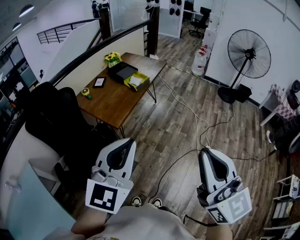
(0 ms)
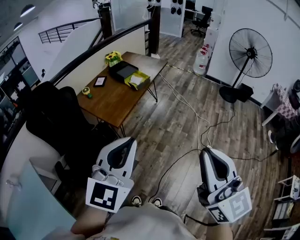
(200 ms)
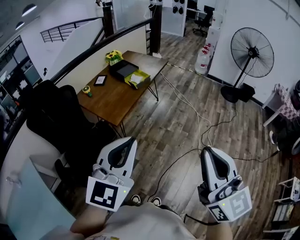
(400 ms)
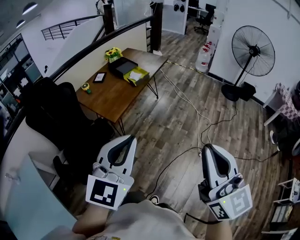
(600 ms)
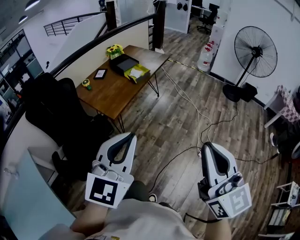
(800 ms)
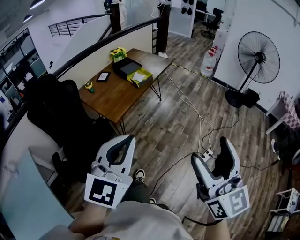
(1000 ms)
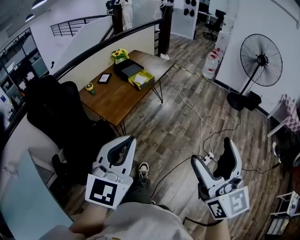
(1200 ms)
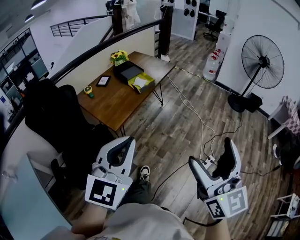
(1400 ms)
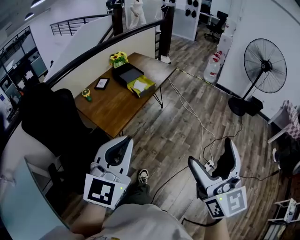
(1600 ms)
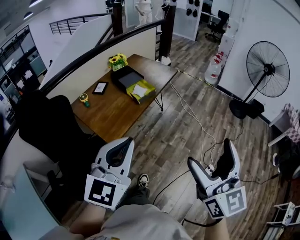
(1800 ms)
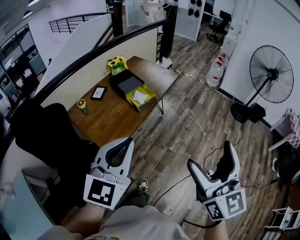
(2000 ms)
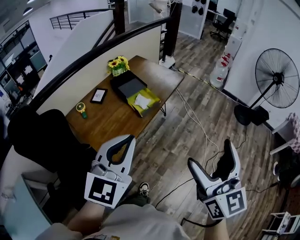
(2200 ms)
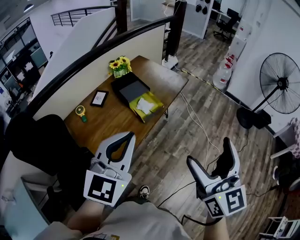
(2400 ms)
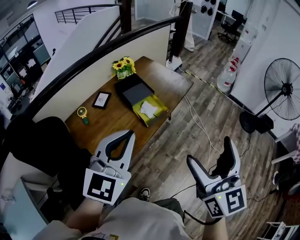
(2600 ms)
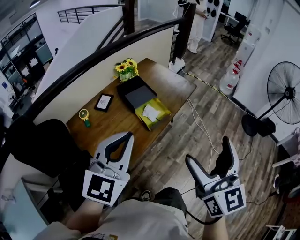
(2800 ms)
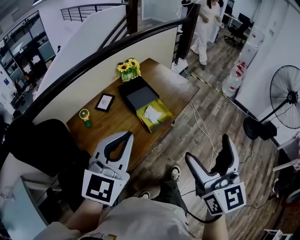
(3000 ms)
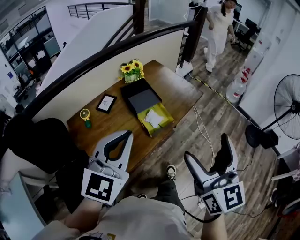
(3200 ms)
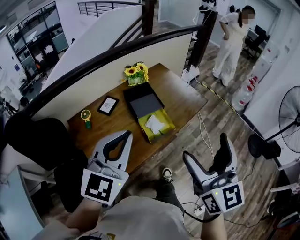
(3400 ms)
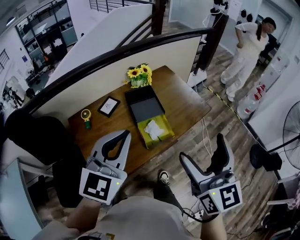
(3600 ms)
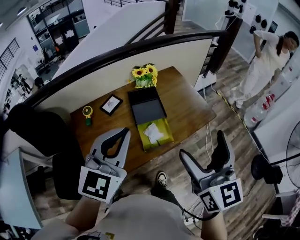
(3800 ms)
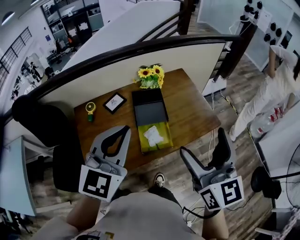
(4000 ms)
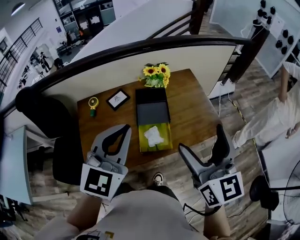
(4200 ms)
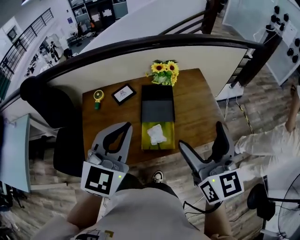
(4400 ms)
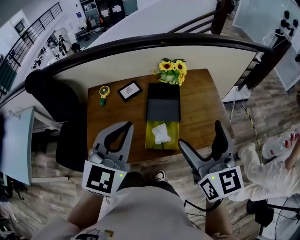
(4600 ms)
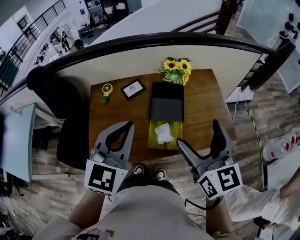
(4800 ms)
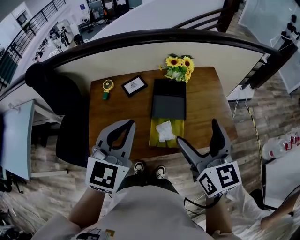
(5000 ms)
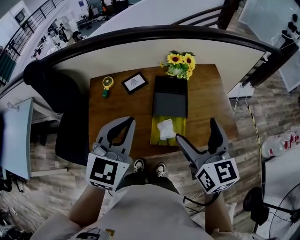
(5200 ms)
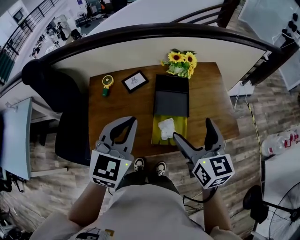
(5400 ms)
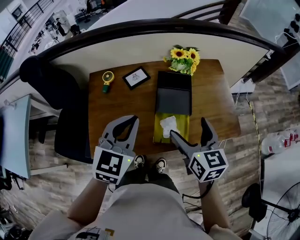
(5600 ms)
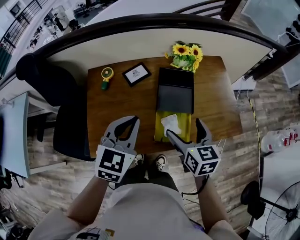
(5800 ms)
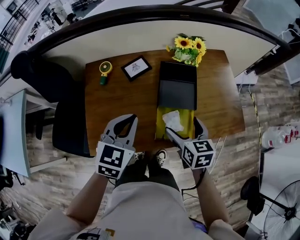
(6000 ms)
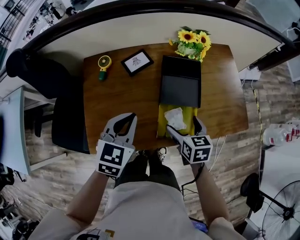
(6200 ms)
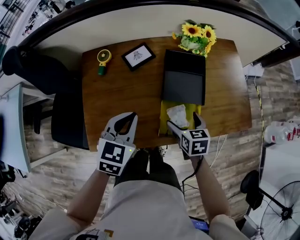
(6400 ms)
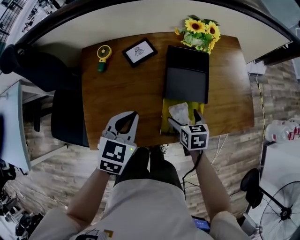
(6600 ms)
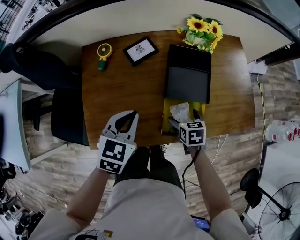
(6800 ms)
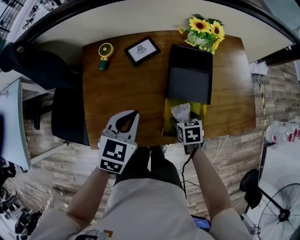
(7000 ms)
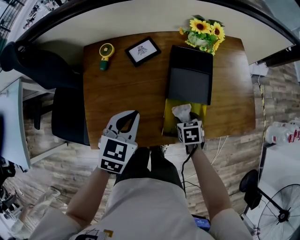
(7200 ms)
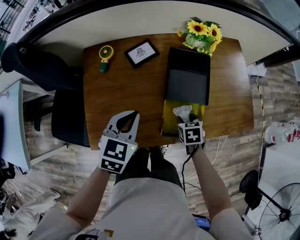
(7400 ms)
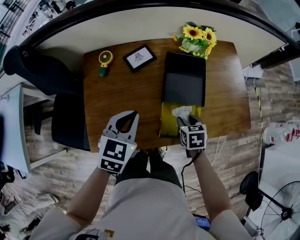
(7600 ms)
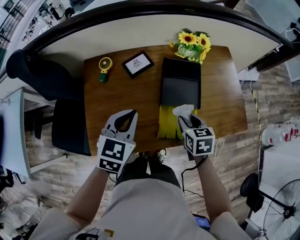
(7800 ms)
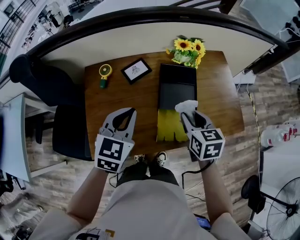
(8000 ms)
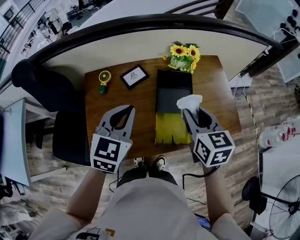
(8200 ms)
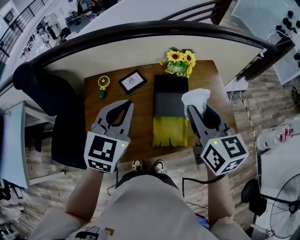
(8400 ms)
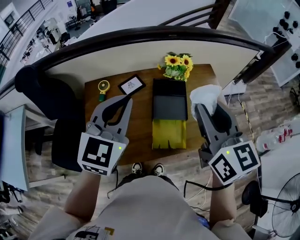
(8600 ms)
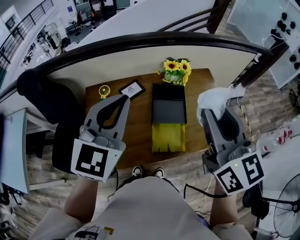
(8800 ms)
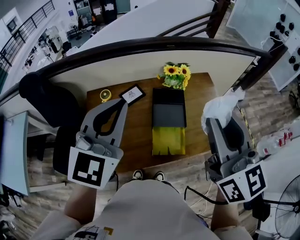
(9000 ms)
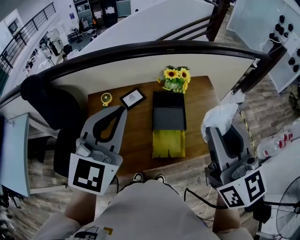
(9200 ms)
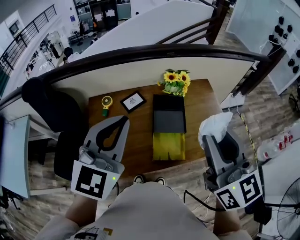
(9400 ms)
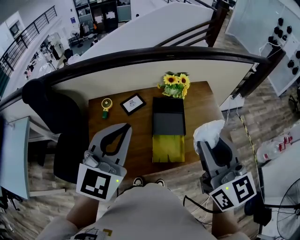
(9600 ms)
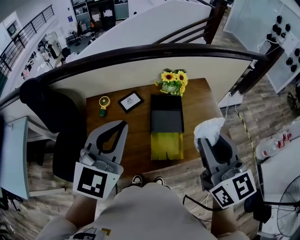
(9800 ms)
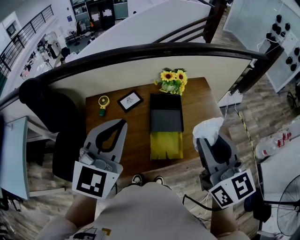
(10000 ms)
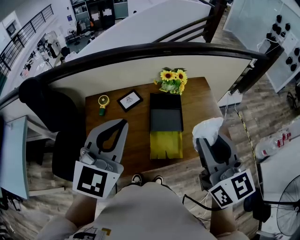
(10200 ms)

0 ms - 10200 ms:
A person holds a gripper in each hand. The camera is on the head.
0 ms - 1400 ms: The grippers both shift forward and to the right by about 10 cm. The right gripper opens.
1400 ms - 3000 ms: The pair of grippers is taken forward, approximately 50 cm.
3000 ms - 4400 ms: The left gripper ends up some 20 cm from where it was, and turns by approximately 40 degrees; the right gripper shifts by roughly 35 cm, and swivels roughly 40 degrees.
4400 ms - 5800 ms: The left gripper is displaced downward, to the left and forward by about 15 cm. Meanwhile the right gripper moves downward and to the left, approximately 25 cm, and changes its angle by approximately 30 degrees.
5800 ms - 7200 ms: The left gripper travels downward by about 15 cm; the right gripper travels downward by roughly 25 cm, tilts its fingers about 40 degrees downward, and closes its fingers.
7200 ms - 8800 ms: The left gripper moves upward, about 30 cm, and tips its fingers upward by approximately 30 degrees. The right gripper shifts about 50 cm upward, and angles its fingers upward, by about 60 degrees.
8800 ms - 10200 ms: The right gripper ends up roughly 5 cm from where it was.

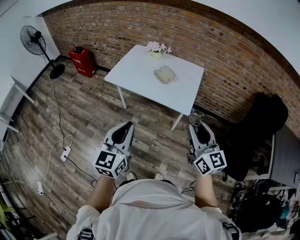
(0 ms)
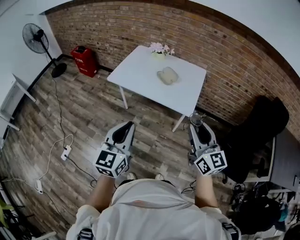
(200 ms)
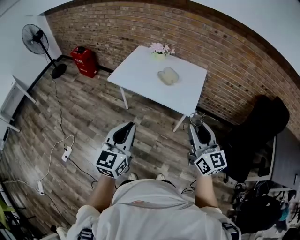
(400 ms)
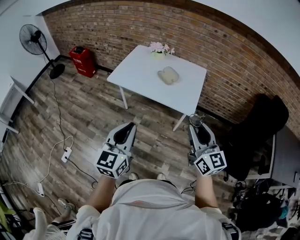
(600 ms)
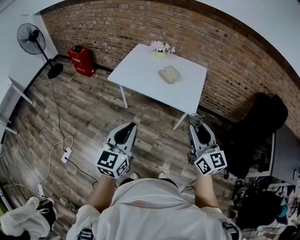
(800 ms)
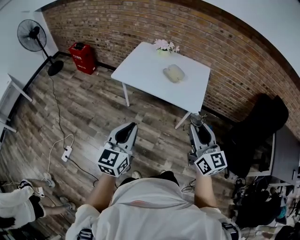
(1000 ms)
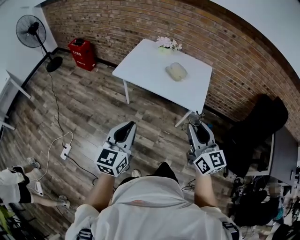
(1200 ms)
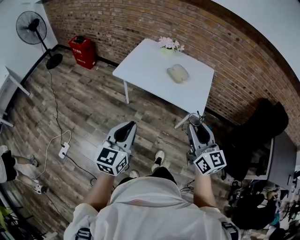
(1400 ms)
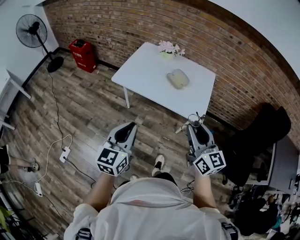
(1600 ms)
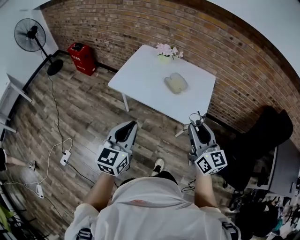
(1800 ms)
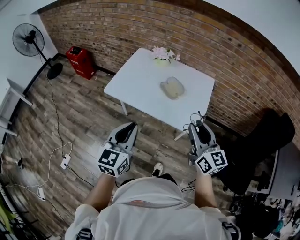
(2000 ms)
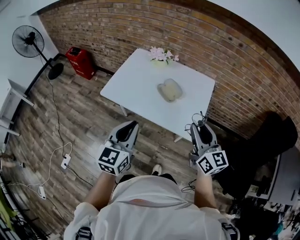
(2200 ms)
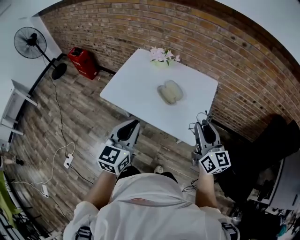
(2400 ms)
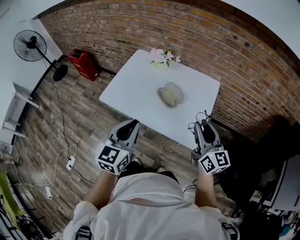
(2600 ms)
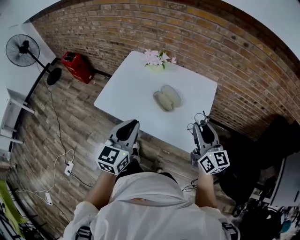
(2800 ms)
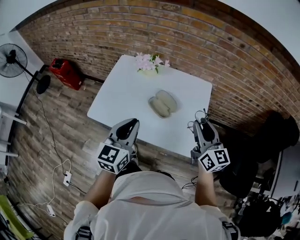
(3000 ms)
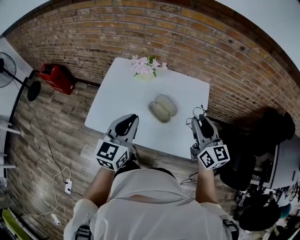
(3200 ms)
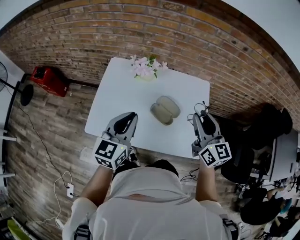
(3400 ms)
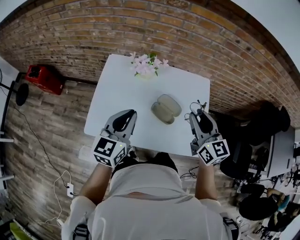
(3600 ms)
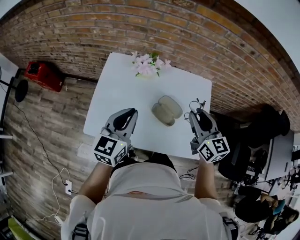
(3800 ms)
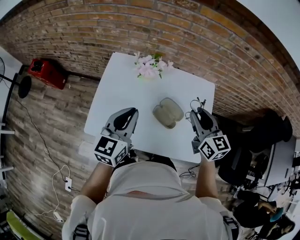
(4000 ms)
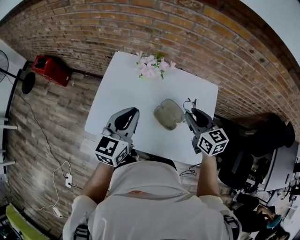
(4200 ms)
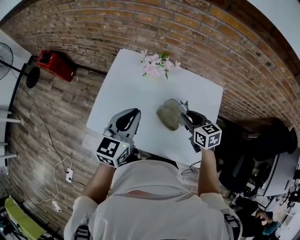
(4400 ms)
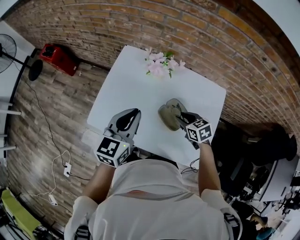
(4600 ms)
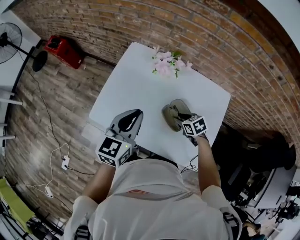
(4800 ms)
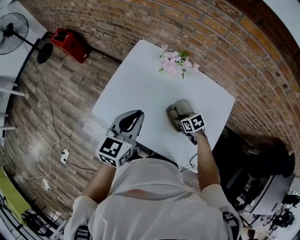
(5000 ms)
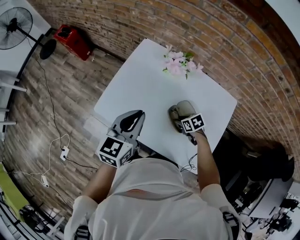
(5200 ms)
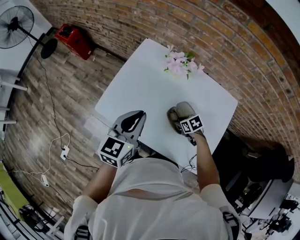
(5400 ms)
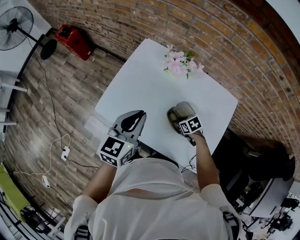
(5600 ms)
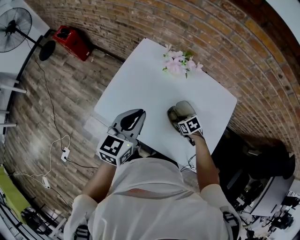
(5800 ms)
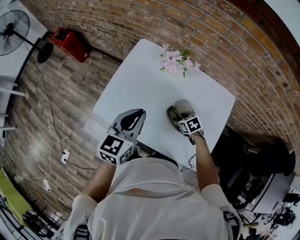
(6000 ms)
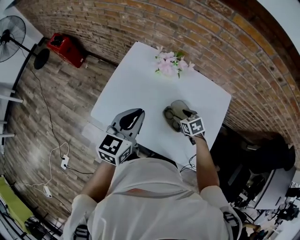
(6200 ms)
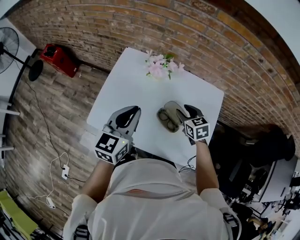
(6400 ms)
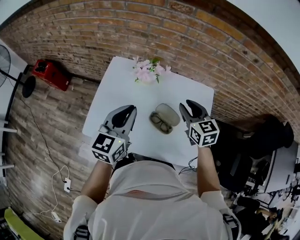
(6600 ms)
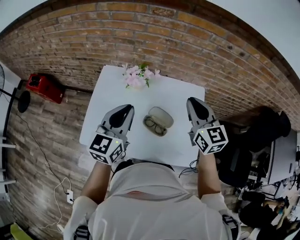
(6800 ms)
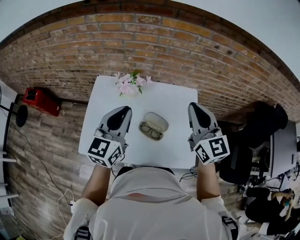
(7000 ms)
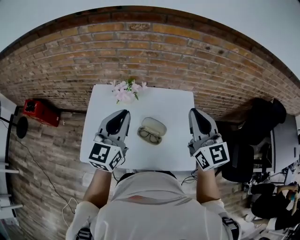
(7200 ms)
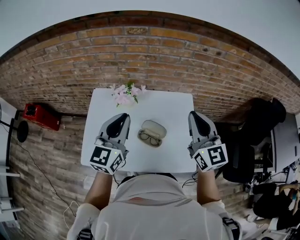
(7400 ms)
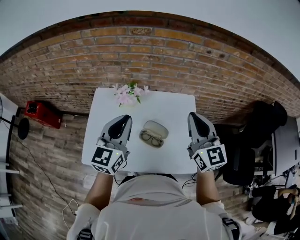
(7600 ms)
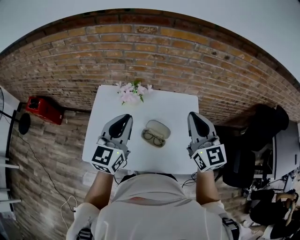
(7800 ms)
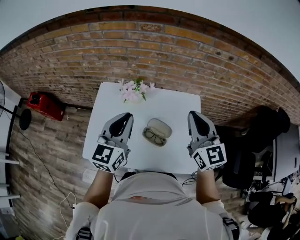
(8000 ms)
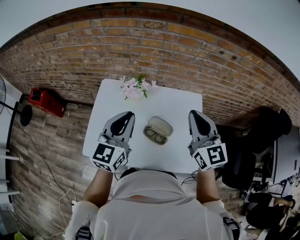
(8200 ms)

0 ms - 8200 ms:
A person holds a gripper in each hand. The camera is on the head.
0 ms - 1600 ms: The grippers both shift to the left and forward by roughly 15 cm.
1600 ms - 3200 ms: The two grippers go about 40 cm forward.
3200 ms - 5000 ms: The left gripper ends up roughly 10 cm from where it was. The right gripper goes about 35 cm downward, and points its fingers approximately 60 degrees further downward.
5000 ms - 6600 ms: The left gripper moves upward, roughly 5 cm. Meanwhile the right gripper moves upward, some 25 cm, angles its fingers upward, by roughly 40 degrees, and opens, then closes again.
6600 ms - 8200 ms: The left gripper is displaced upward by some 5 cm; the right gripper moves upward, approximately 15 cm, rotates some 30 degrees, and closes its fingers.

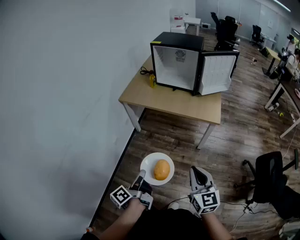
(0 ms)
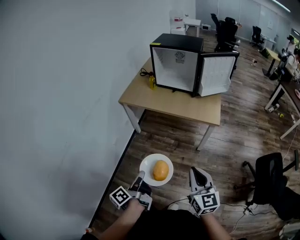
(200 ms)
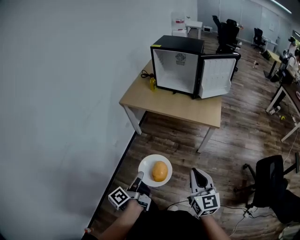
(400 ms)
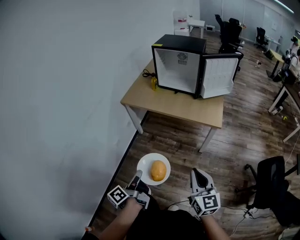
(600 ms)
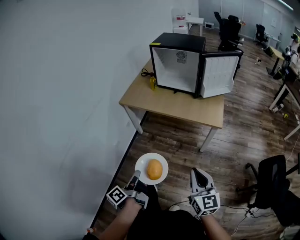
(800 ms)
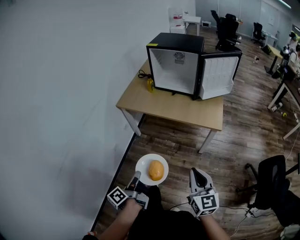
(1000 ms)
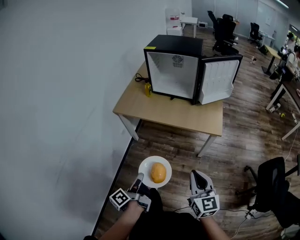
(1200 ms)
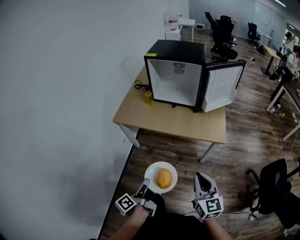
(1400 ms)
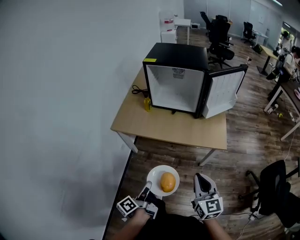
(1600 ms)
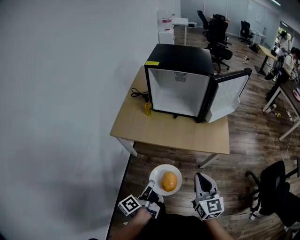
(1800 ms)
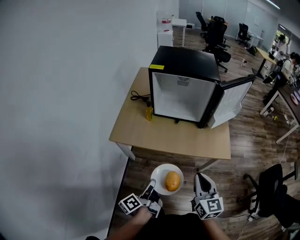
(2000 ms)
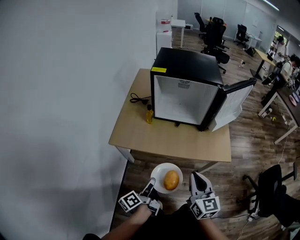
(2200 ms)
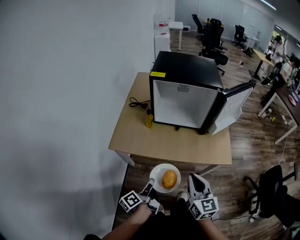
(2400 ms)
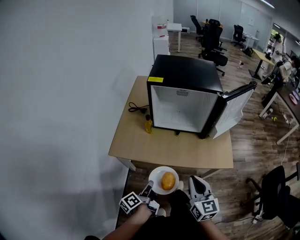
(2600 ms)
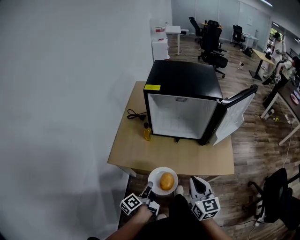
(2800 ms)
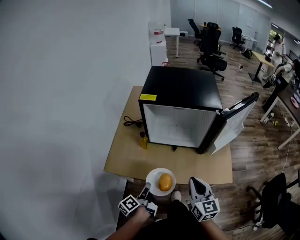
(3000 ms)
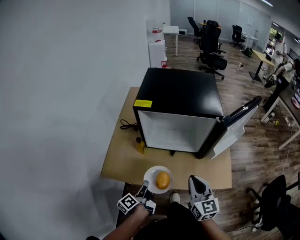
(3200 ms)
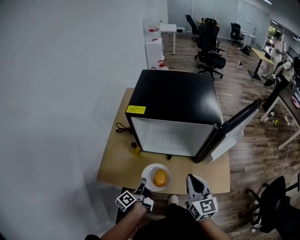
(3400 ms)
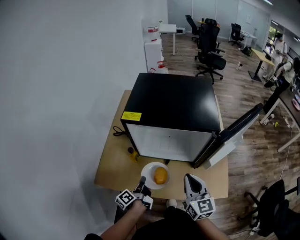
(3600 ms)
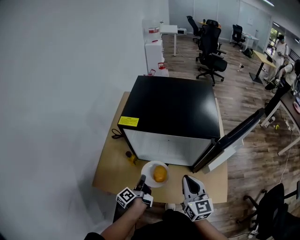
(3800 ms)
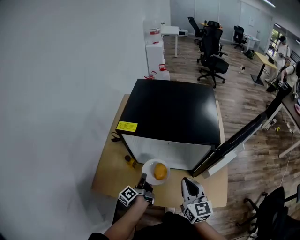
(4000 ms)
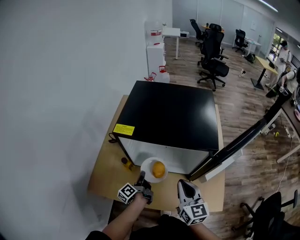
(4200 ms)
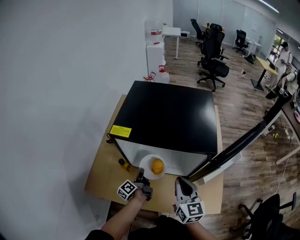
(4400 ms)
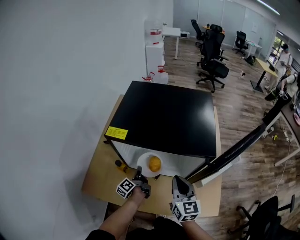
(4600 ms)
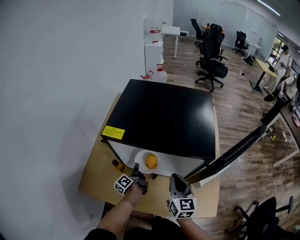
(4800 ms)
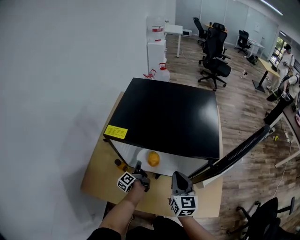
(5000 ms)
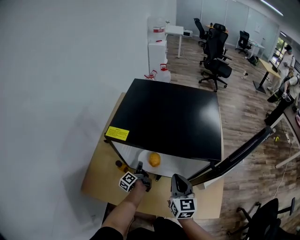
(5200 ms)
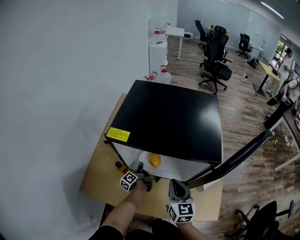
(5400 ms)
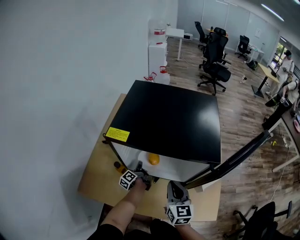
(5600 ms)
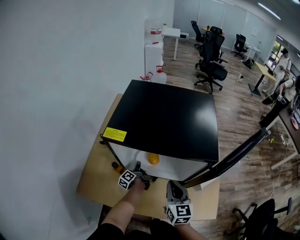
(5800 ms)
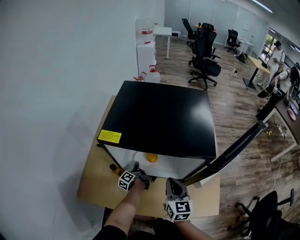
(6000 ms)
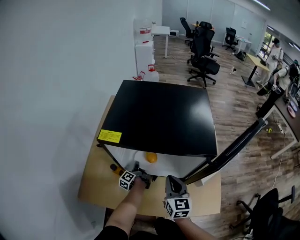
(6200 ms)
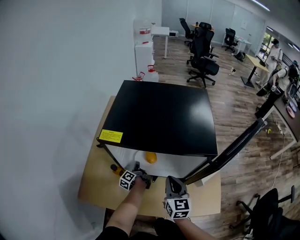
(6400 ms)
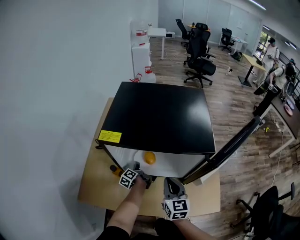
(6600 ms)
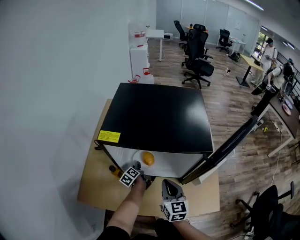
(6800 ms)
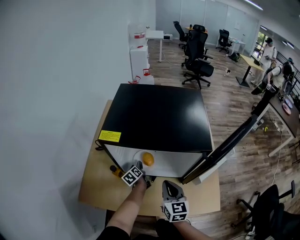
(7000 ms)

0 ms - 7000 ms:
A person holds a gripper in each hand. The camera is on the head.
0 ms - 1400 ms: Both grippers move forward, about 15 cm.
1400 ms - 2800 ms: The right gripper is displaced forward and to the left by some 30 cm, while the left gripper is displaced forward by about 30 cm.
2800 ms - 4200 ms: The two grippers go approximately 25 cm forward.
4200 ms - 5600 ms: The right gripper moves downward and forward, approximately 10 cm, while the left gripper goes roughly 15 cm forward and downward.
5600 ms - 7000 ms: The left gripper turns by approximately 40 degrees, and opens.
